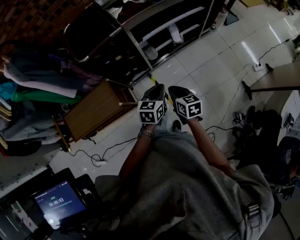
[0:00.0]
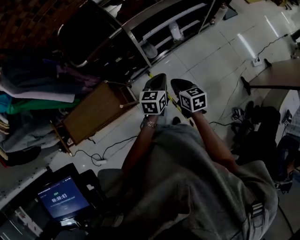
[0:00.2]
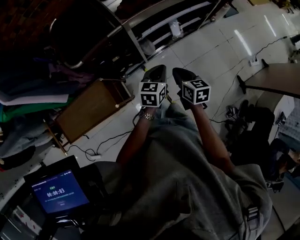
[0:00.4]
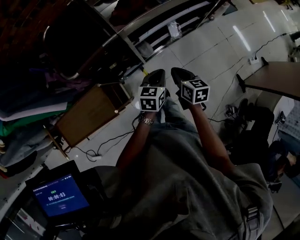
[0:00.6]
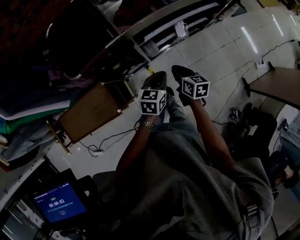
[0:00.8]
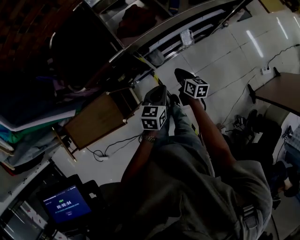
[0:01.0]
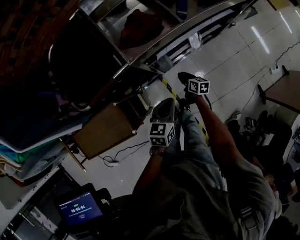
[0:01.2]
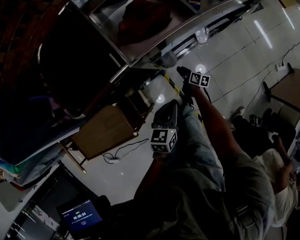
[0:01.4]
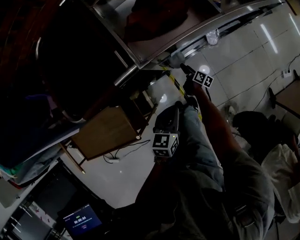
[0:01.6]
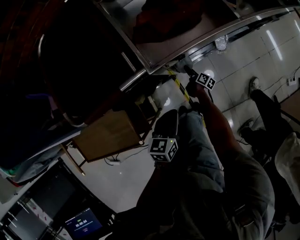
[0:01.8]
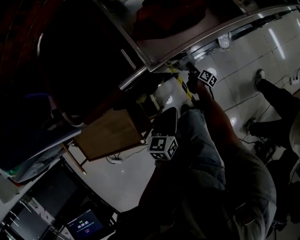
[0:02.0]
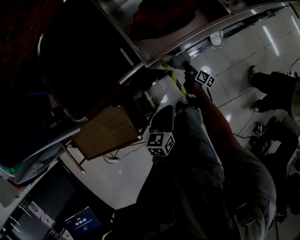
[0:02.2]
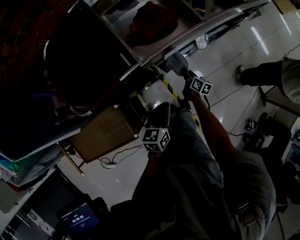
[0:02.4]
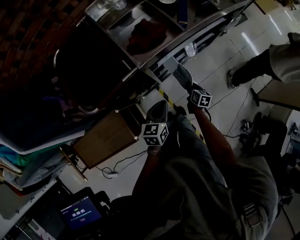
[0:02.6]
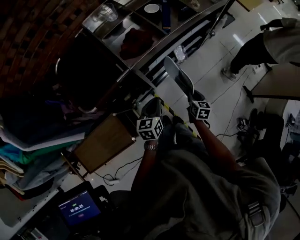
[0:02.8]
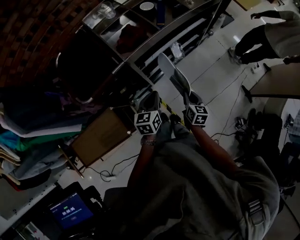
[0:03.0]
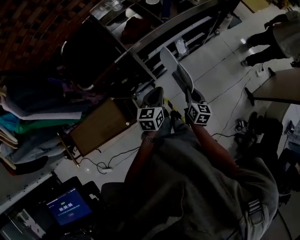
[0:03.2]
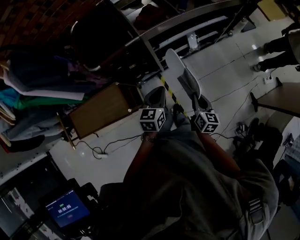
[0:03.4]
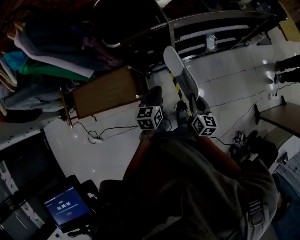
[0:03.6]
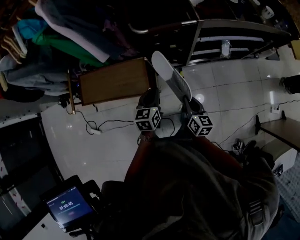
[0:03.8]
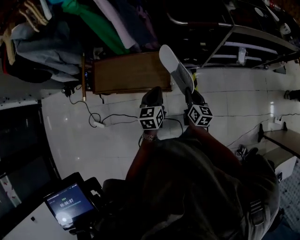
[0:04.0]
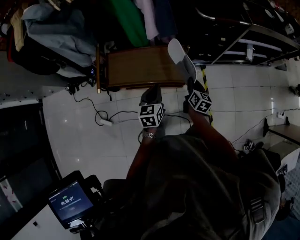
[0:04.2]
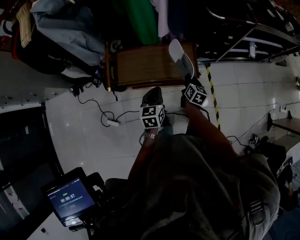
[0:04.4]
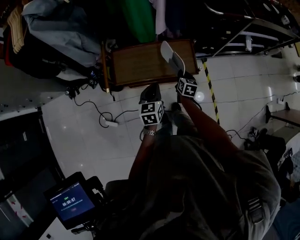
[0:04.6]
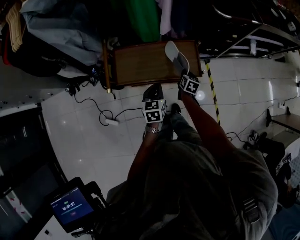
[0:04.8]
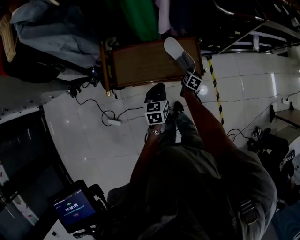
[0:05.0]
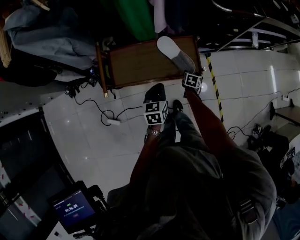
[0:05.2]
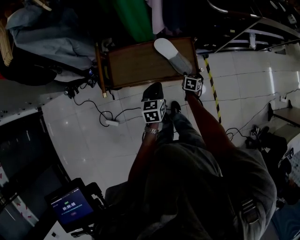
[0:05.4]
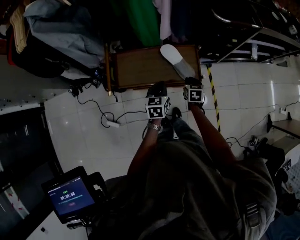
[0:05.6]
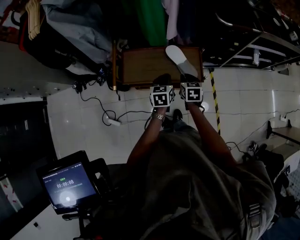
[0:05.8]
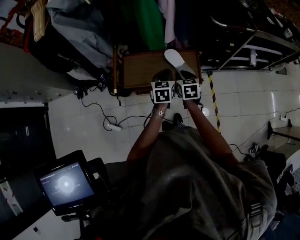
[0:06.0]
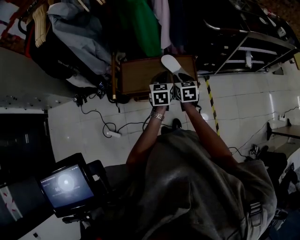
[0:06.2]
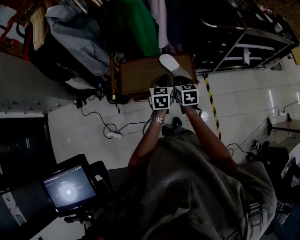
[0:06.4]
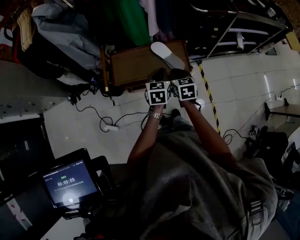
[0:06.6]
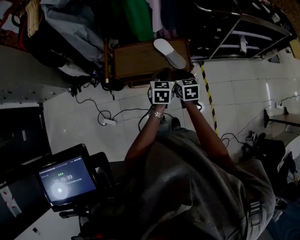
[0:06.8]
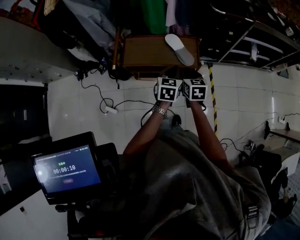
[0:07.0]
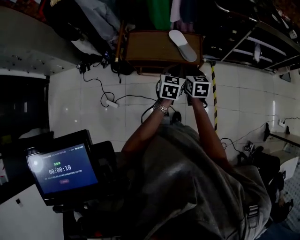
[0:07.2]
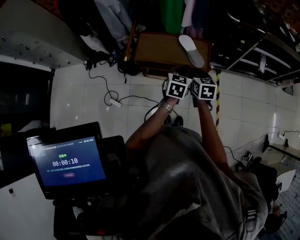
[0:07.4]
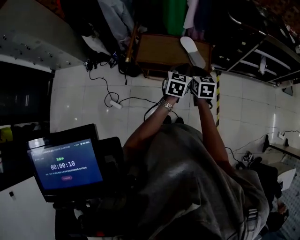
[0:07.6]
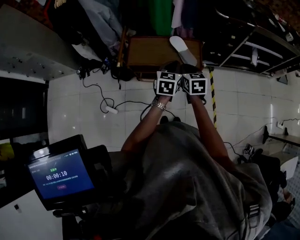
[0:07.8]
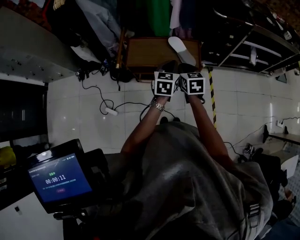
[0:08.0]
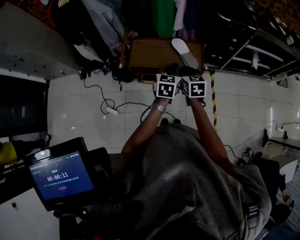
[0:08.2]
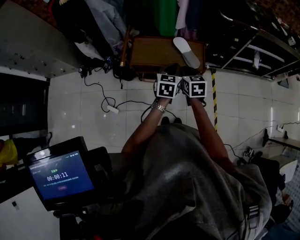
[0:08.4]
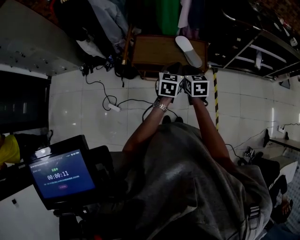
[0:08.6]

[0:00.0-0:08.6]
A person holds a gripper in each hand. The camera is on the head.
0:00.0 to 0:01.4: The left gripper shifts roughly 25 cm forward and downward. Meanwhile the right gripper travels downward and forward by some 50 cm, turns by approximately 40 degrees, and opens its fingers.
0:01.4 to 0:02.8: The right gripper is displaced upward, backward and to the right by some 30 cm, turns by roughly 40 degrees, and opens and closes again, while the left gripper shifts approximately 10 cm upward.
0:02.8 to 0:04.4: Both grippers are carried some 70 cm. The left gripper changes its angle by some 30 degrees.
0:04.4 to 0:05.8: The right gripper heads to the left, covering approximately 10 cm, moves some 20 cm downward and comes back, turns by some 30 degrees, and opens, then closes once more; the left gripper goes about 10 cm forward.
0:05.8 to 0:07.2: The left gripper moves backward, upward and to the right, approximately 20 cm. The right gripper heads backward and upward, covering about 15 cm.
0:07.2 to 0:08.6: The left gripper changes place by some 5 cm. The right gripper ends up roughly 5 cm from where it was.

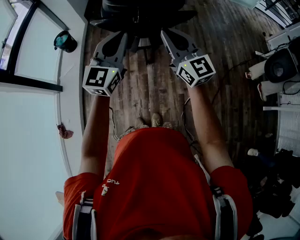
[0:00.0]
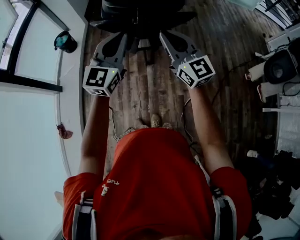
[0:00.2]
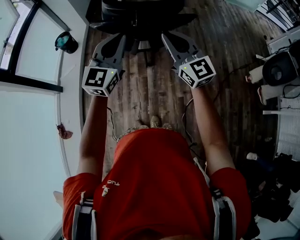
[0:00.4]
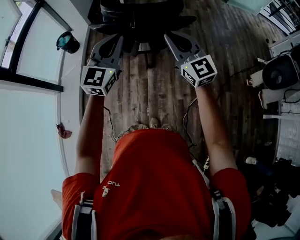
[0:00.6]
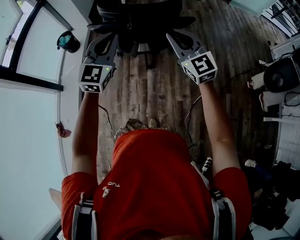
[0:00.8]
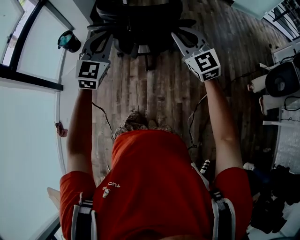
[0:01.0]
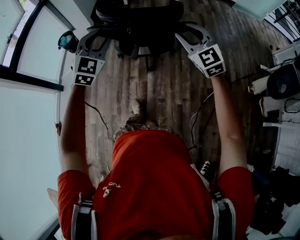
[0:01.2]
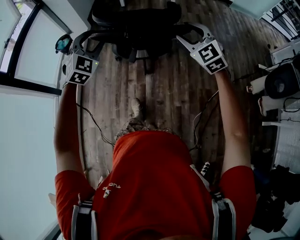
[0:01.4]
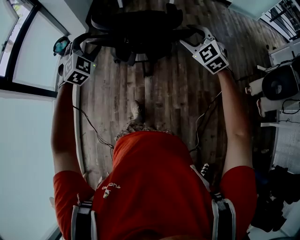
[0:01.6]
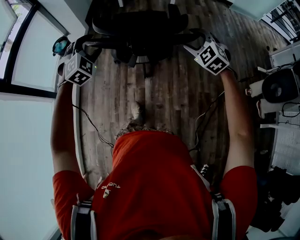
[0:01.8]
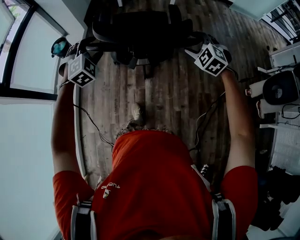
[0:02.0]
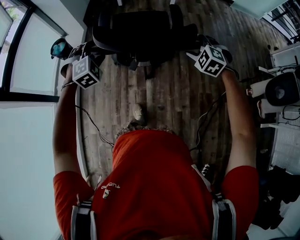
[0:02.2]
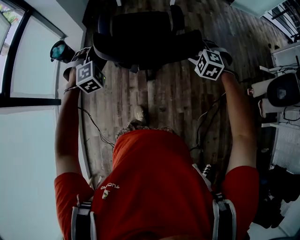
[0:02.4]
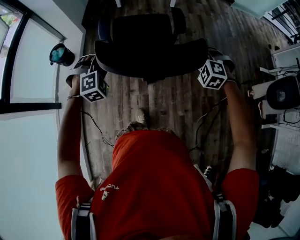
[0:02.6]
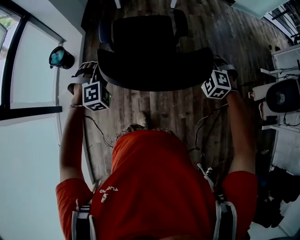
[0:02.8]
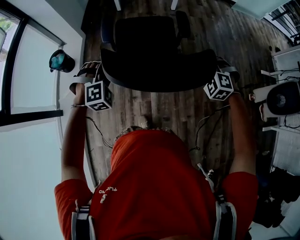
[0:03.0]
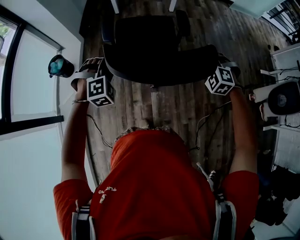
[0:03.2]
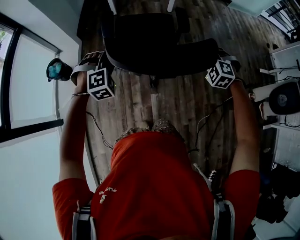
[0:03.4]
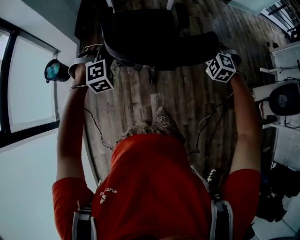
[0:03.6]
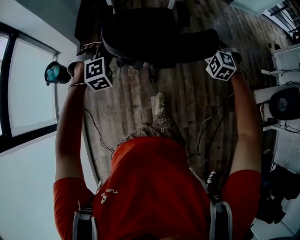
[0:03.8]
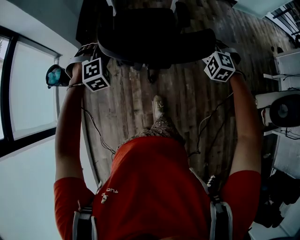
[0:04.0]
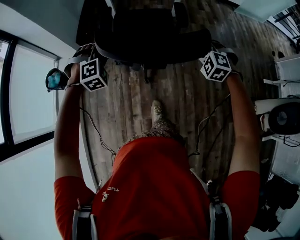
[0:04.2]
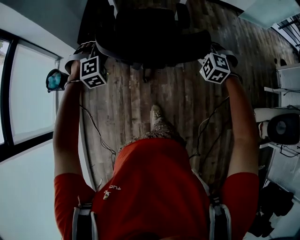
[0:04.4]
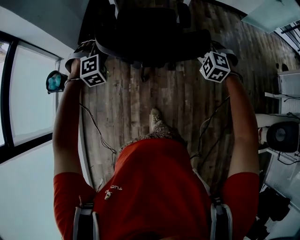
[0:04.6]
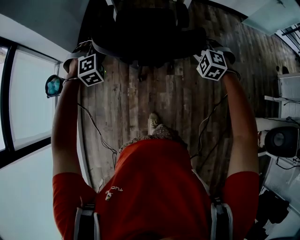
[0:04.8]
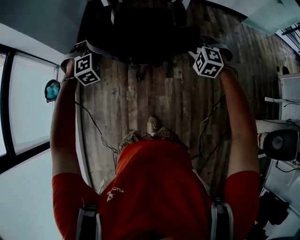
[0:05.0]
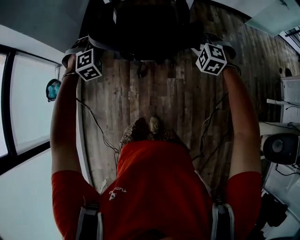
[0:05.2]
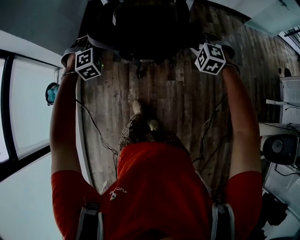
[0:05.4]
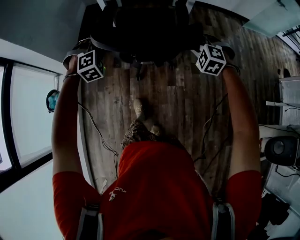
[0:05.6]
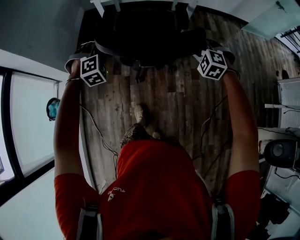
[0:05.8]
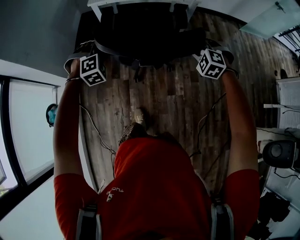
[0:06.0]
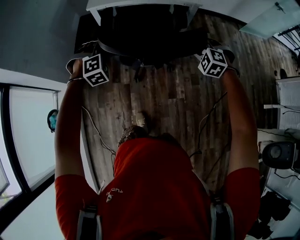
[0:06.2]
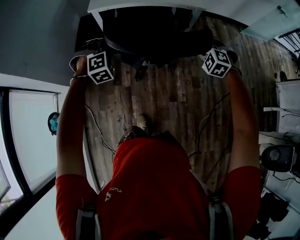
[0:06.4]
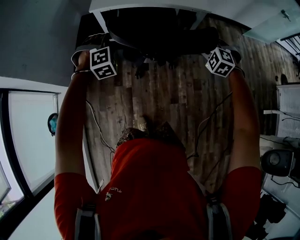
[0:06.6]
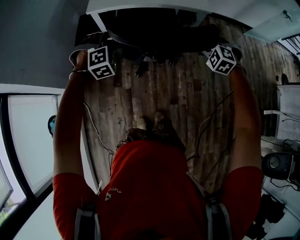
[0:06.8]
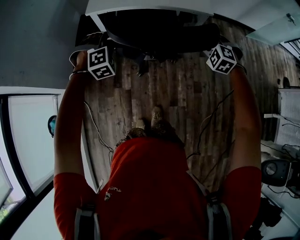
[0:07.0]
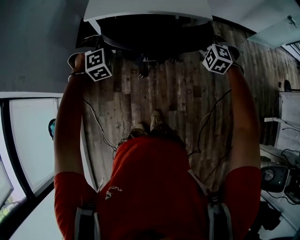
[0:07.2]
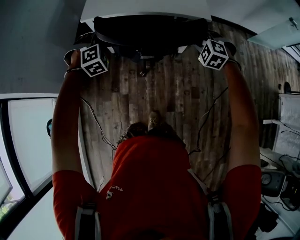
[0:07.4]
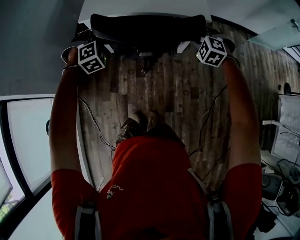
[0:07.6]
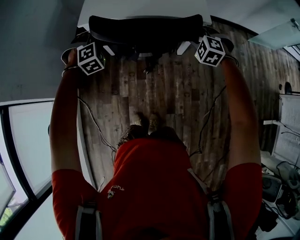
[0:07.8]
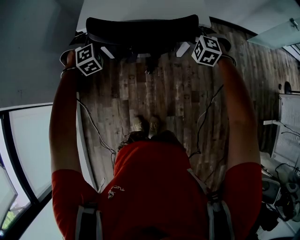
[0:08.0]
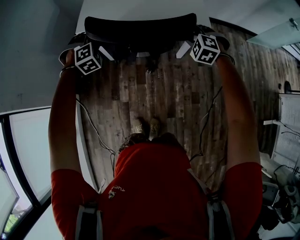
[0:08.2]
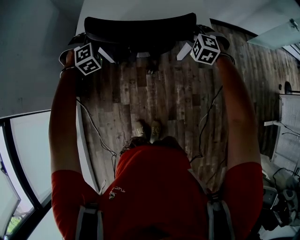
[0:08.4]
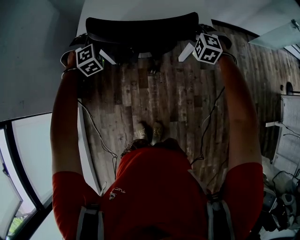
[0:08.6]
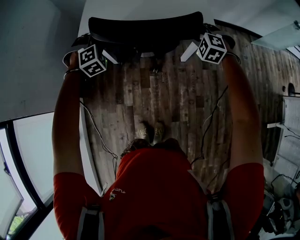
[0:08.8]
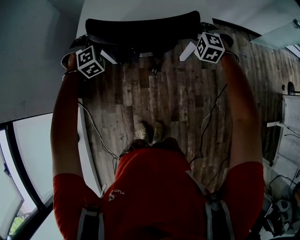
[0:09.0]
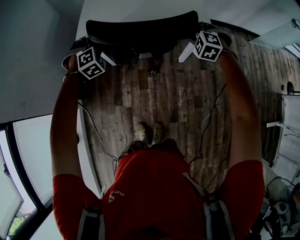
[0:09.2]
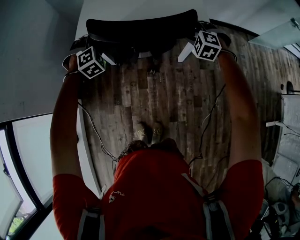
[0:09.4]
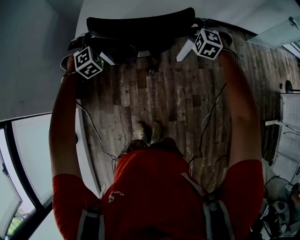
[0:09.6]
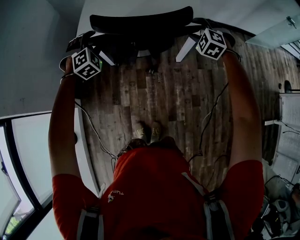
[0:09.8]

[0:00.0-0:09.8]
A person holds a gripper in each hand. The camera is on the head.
0:00.0 to 0:01.4: The left gripper goes approximately 15 cm forward and downward, changes its angle by roughly 50 degrees, and opens, while the right gripper shifts about 20 cm to the right, forward and downward, angles its fingers downward, by approximately 30 degrees, and opens its fingers.
0:01.4 to 0:02.8: The left gripper heads forward and downward, covering roughly 15 cm, turns by roughly 30 degrees, and closes. The right gripper moves downward and forward, about 20 cm, and swivels about 40 degrees.
0:02.8 to 0:04.2: Both grippers move forward, approximately 30 cm.
0:04.2 to 0:05.6: Both grippers move forward, about 30 cm.
0:05.6 to 0:07.0: The grippers both shift forward by approximately 25 cm.
0:07.0 to 0:08.4: Both grippers travel together forward, about 20 cm.
0:08.4 to 0:09.8: The right gripper changes place by approximately 5 cm, and opens its fingers; the left gripper opens up.

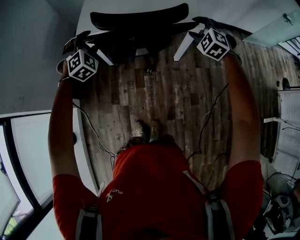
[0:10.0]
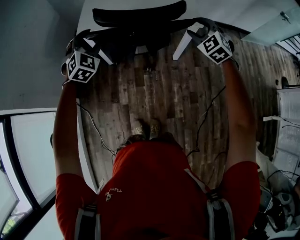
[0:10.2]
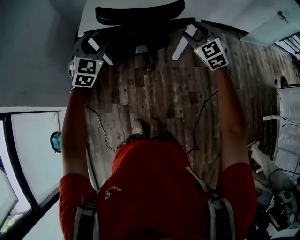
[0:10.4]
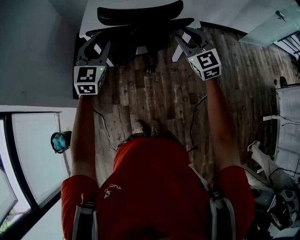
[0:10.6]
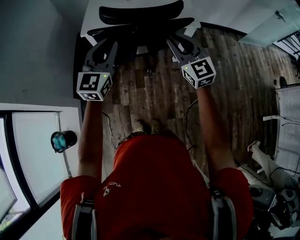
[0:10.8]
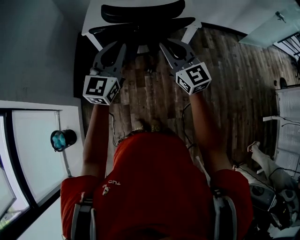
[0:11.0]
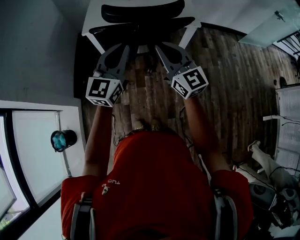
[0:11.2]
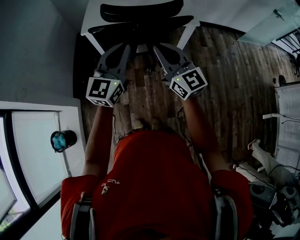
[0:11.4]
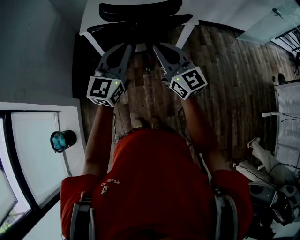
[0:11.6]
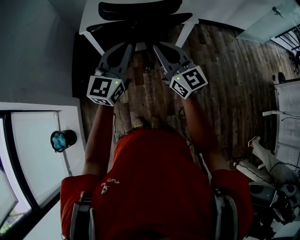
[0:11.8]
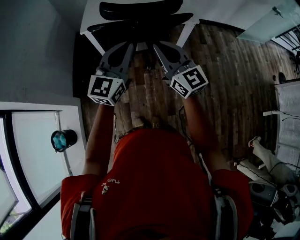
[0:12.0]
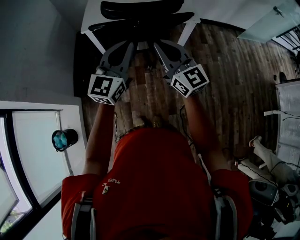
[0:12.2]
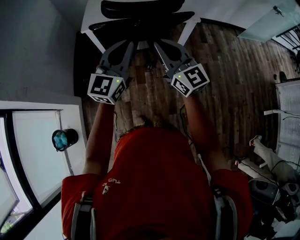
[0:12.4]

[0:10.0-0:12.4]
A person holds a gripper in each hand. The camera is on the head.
0:10.0 to 0:11.2: The left gripper is displaced backward, upward and to the right by roughly 25 cm, tilts its fingers about 40 degrees upward, and closes. Meanwhile the right gripper heads backward, to the left and upward, covering about 30 cm, tilts its fingers approximately 50 degrees upward, and closes.
0:11.2 to 0:12.4: The grippers move only a little.

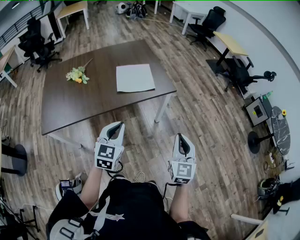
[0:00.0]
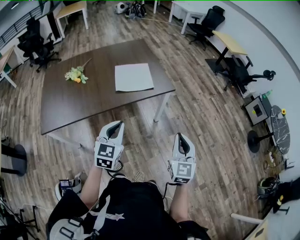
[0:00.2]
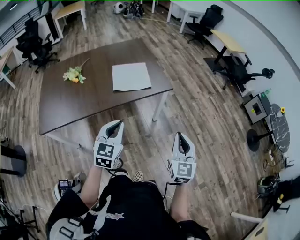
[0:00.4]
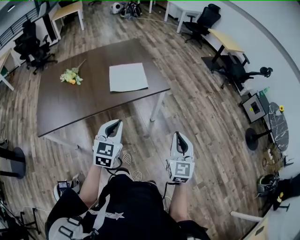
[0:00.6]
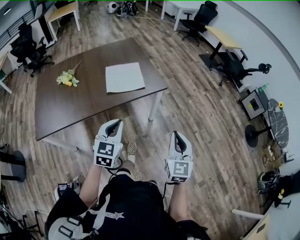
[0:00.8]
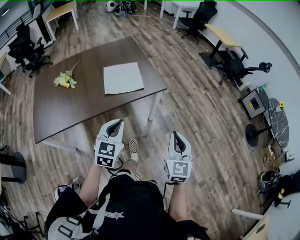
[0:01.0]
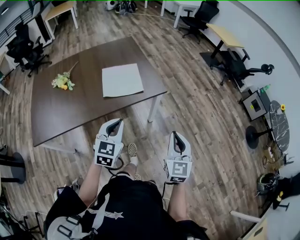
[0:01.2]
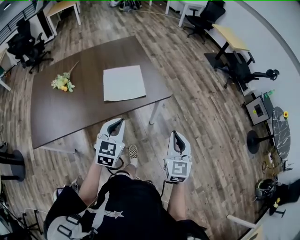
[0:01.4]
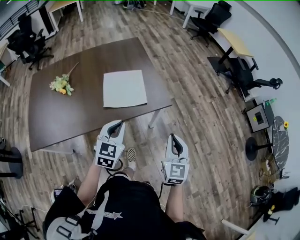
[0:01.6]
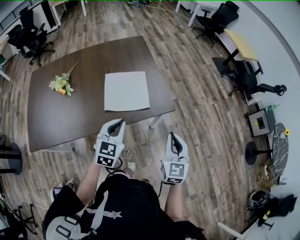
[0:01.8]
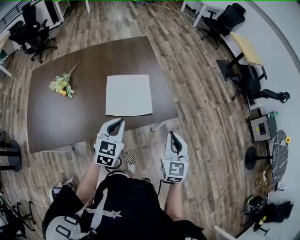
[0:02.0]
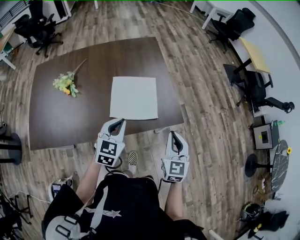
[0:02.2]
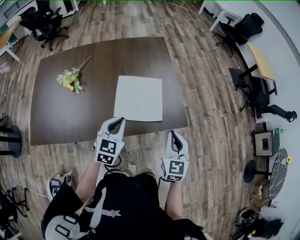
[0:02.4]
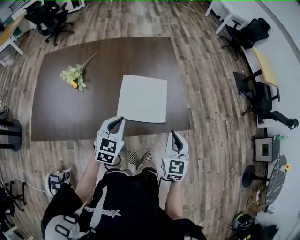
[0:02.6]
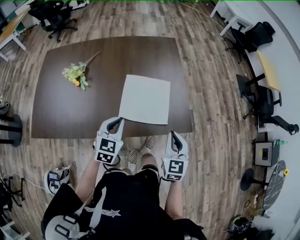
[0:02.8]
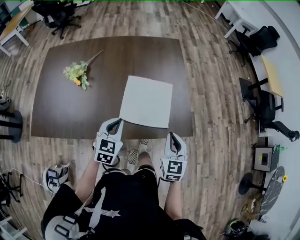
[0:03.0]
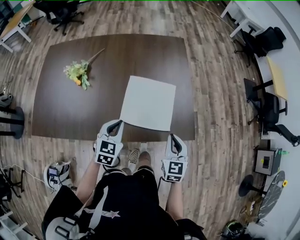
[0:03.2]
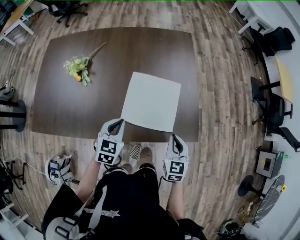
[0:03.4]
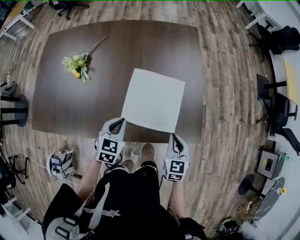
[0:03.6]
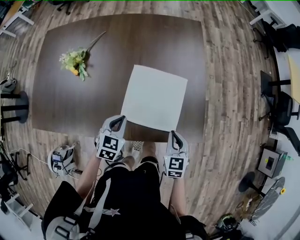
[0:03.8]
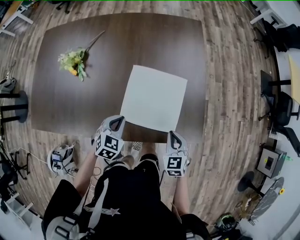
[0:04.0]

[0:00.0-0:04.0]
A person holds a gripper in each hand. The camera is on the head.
0:00.0 to 0:01.4: The right gripper moves some 15 cm.
0:01.4 to 0:02.6: The right gripper shifts by roughly 30 cm.
0:02.6 to 0:04.0: The right gripper is displaced downward by some 15 cm, and changes its angle by some 30 degrees.
